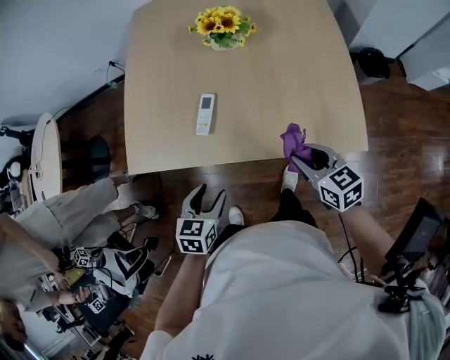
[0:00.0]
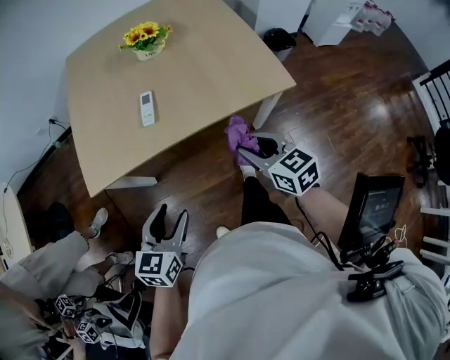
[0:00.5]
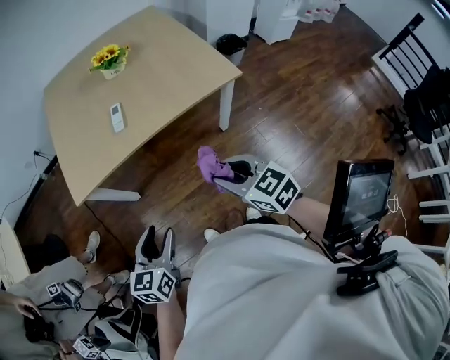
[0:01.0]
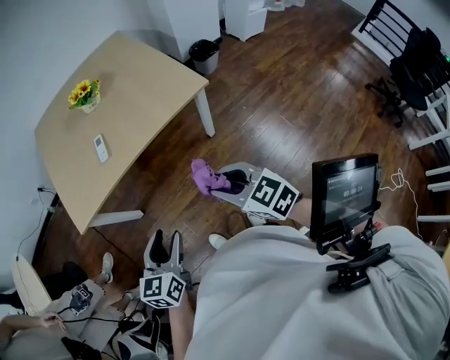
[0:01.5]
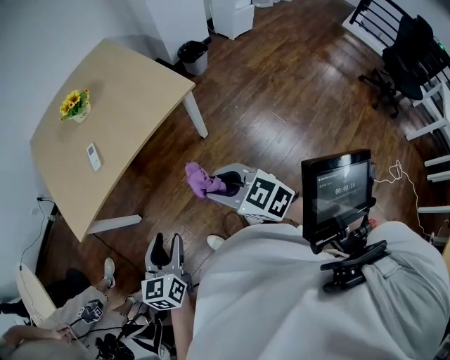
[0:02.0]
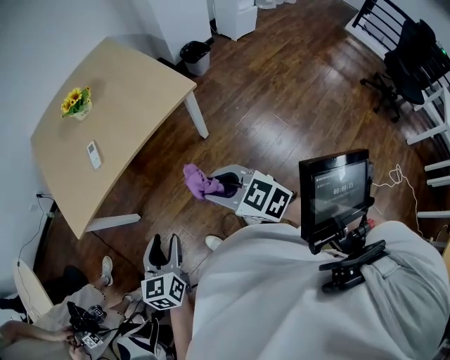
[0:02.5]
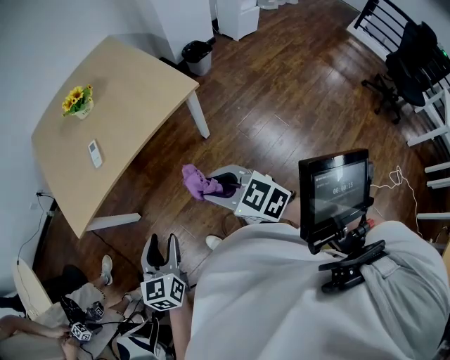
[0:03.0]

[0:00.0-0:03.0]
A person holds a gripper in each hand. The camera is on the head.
0:00.0 to 0:01.5: The right gripper moves backward, some 35 cm, while the left gripper is displaced backward and upward by some 30 cm, and changes its angle by some 30 degrees.
0:01.5 to 0:03.0: The grippers move only a little.

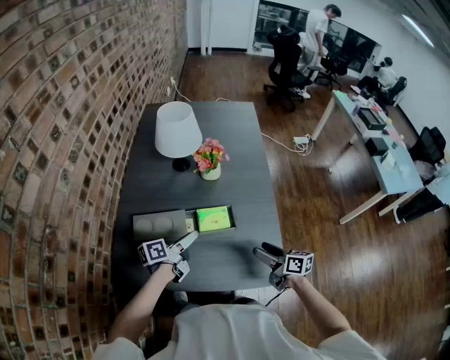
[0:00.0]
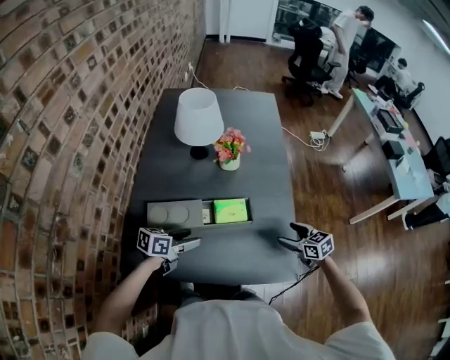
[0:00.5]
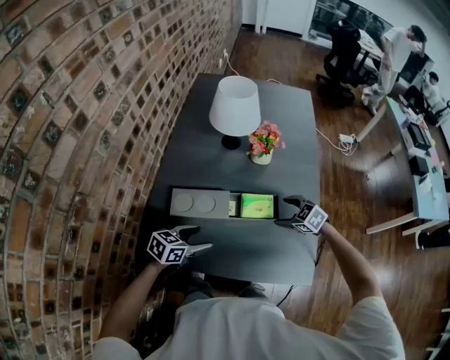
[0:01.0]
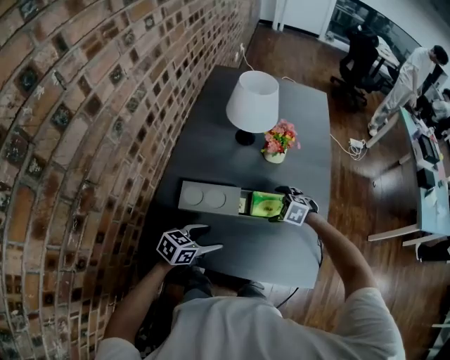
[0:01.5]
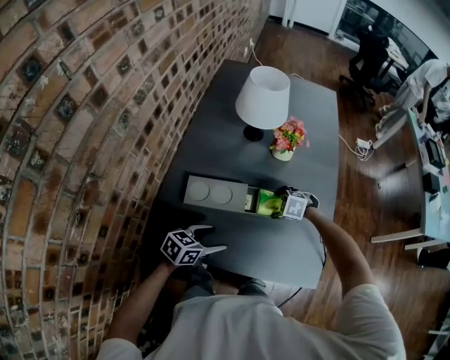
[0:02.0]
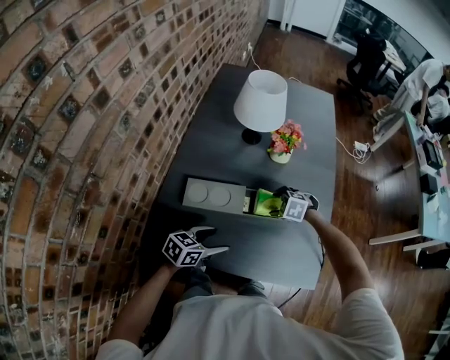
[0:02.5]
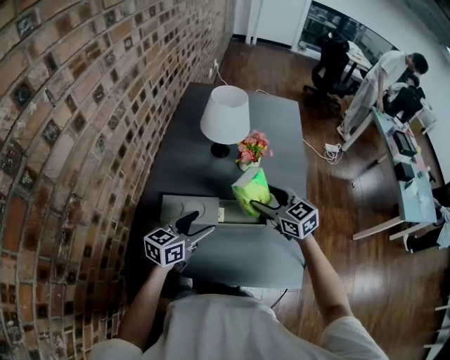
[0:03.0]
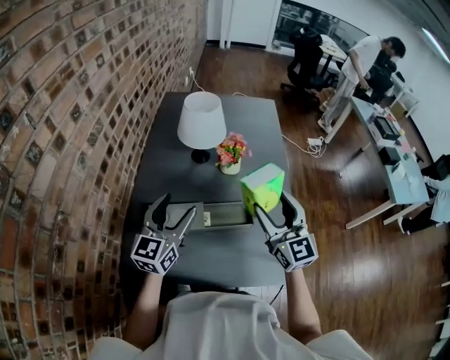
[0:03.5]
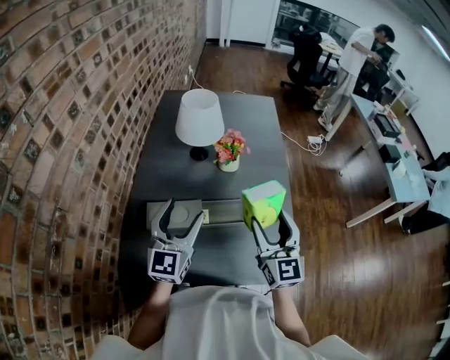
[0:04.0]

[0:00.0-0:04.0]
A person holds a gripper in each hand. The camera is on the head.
0:00.0 to 0:02.0: The right gripper shifts by about 25 cm, and tips its fingers downward by about 60 degrees, while the left gripper ends up roughly 10 cm from where it was, and rotates roughly 50 degrees.
0:02.0 to 0:04.0: Both grippers move upward, roughly 30 cm. The left gripper angles its fingers upward, by about 40 degrees. The right gripper tips its fingers upward by some 80 degrees.

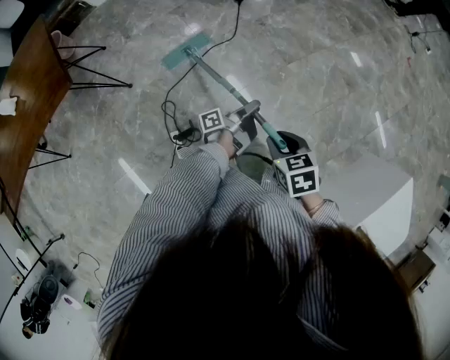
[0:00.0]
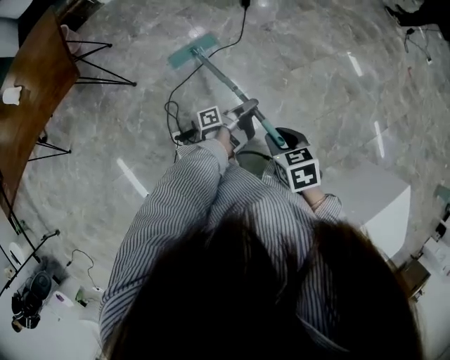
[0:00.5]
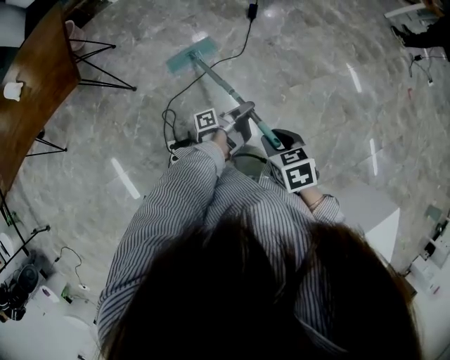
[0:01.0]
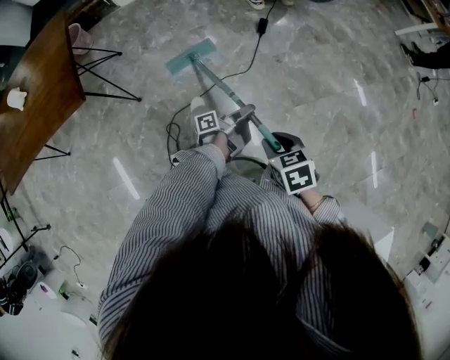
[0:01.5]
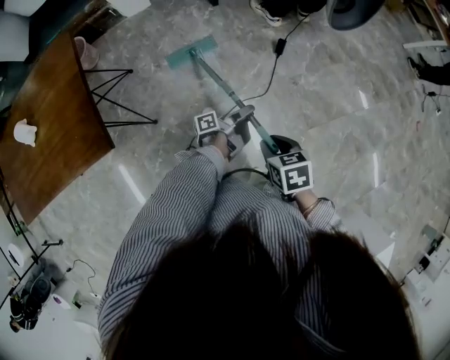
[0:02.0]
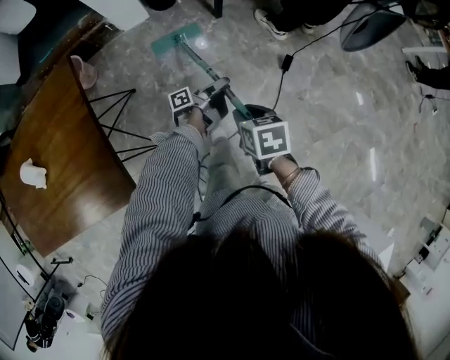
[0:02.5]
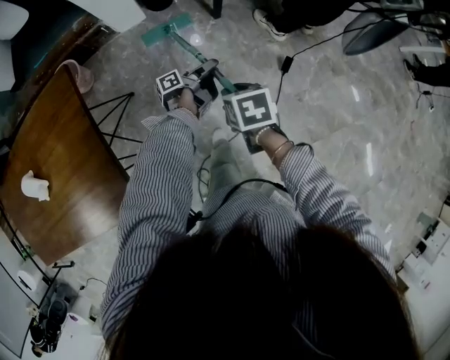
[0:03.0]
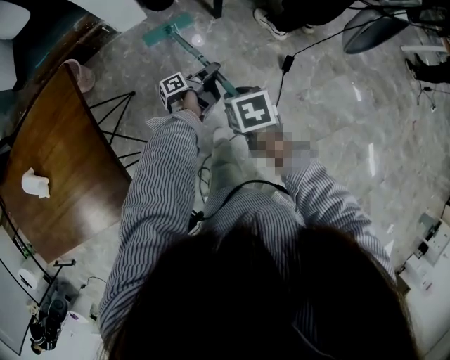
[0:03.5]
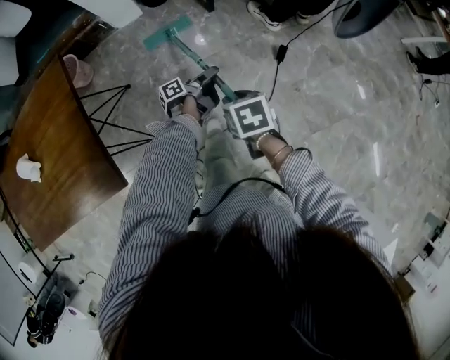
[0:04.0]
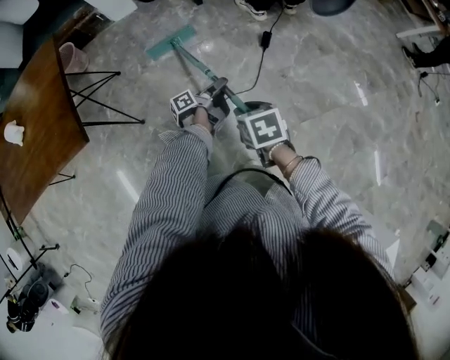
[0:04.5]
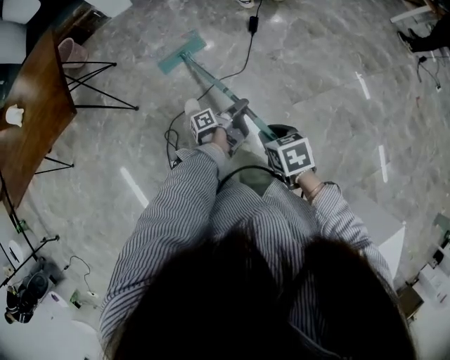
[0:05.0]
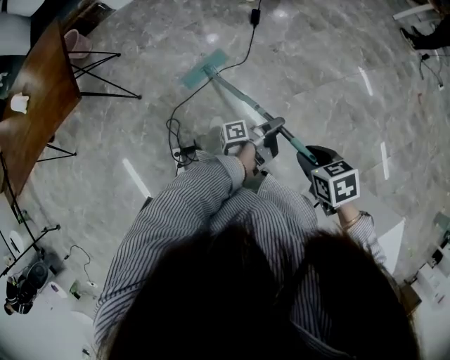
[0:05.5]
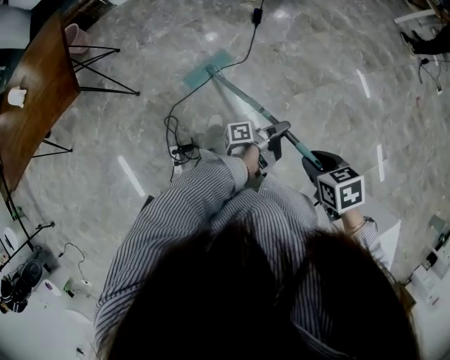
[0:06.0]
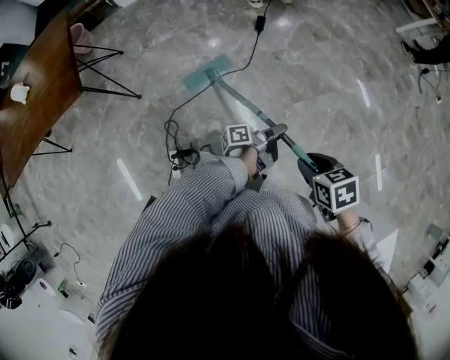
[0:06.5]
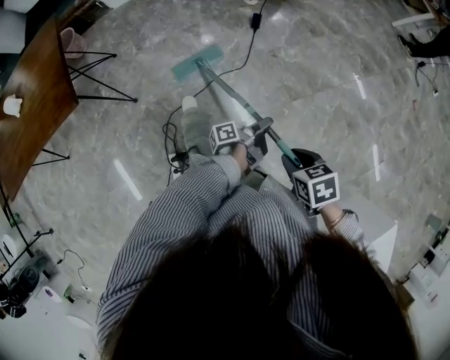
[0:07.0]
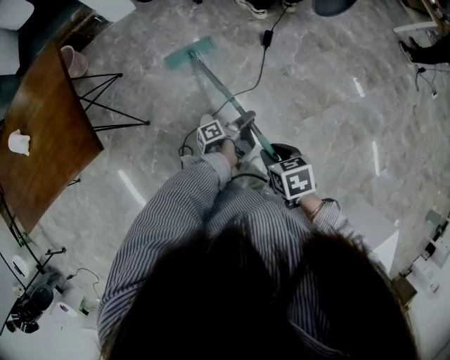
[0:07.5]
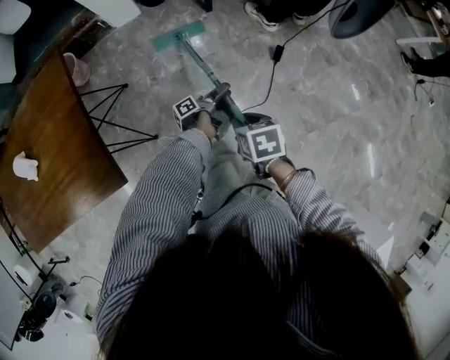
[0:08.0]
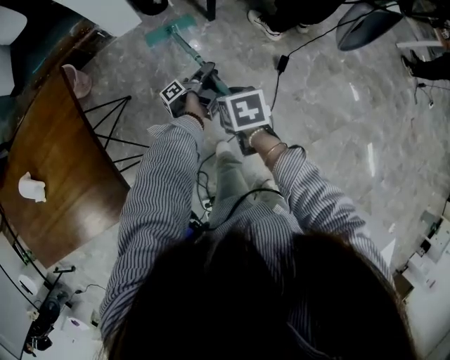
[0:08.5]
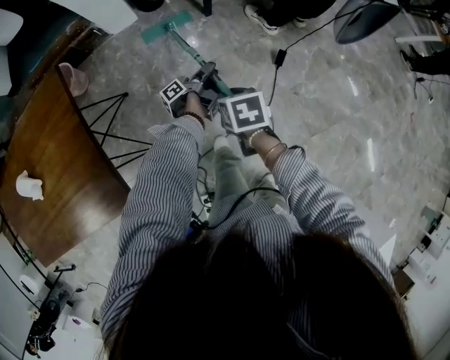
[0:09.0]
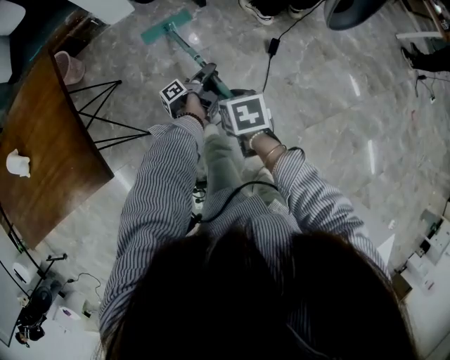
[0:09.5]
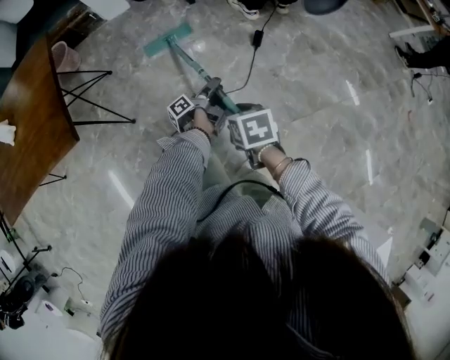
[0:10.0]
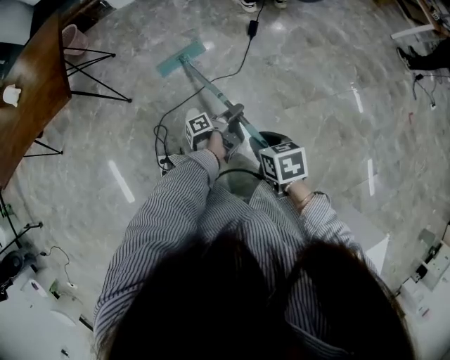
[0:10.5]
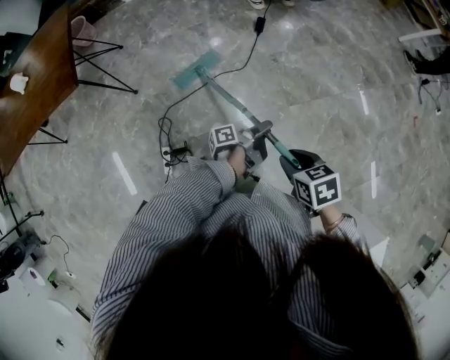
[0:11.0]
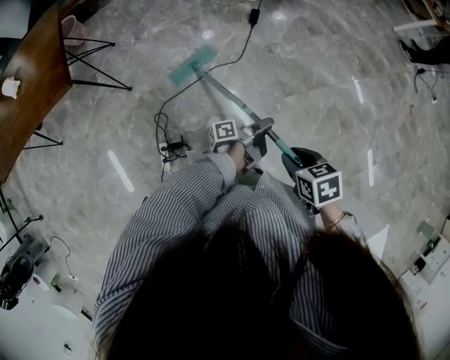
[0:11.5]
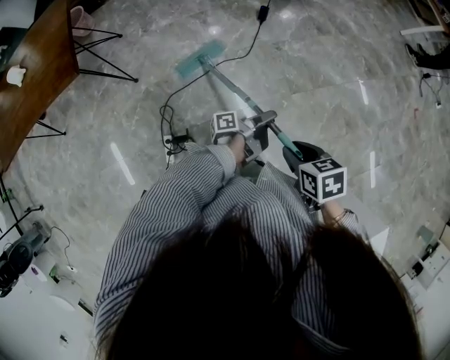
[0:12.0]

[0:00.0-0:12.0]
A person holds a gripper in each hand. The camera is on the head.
0:00.0 to 0:02.0: The right gripper changes place by some 40 cm.
0:02.0 to 0:04.0: The right gripper changes place by about 25 cm.
0:04.0 to 0:06.0: The right gripper shifts by some 60 cm.
0:06.0 to 0:08.0: The right gripper changes place by about 60 cm.
0:08.0 to 0:10.0: The right gripper changes place by approximately 20 cm.
0:10.0 to 0:12.0: The right gripper moves approximately 35 cm.

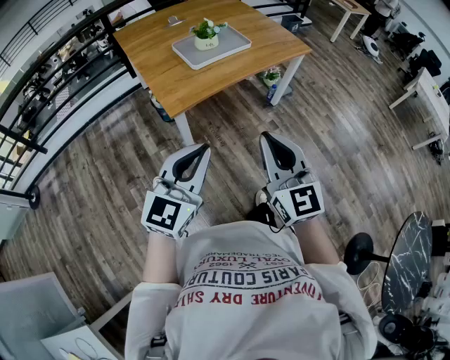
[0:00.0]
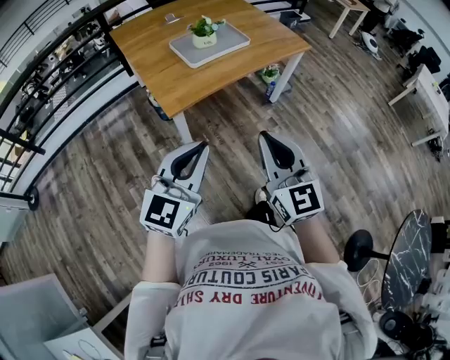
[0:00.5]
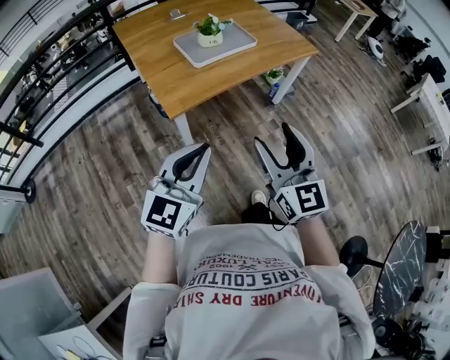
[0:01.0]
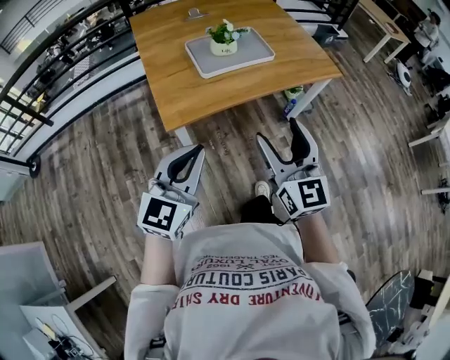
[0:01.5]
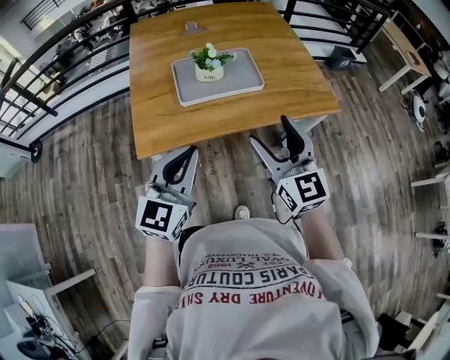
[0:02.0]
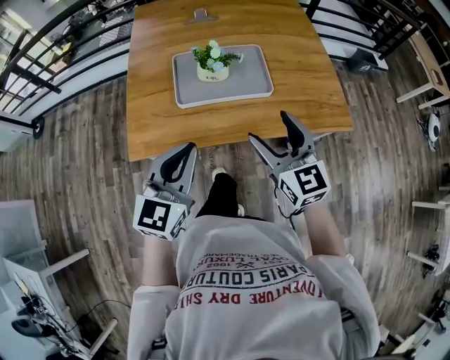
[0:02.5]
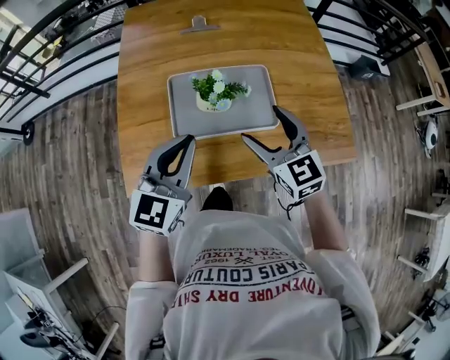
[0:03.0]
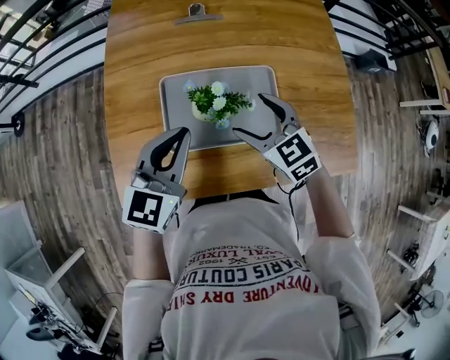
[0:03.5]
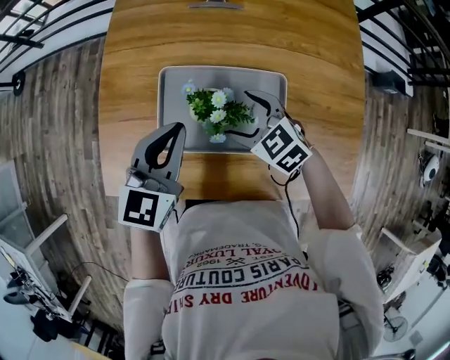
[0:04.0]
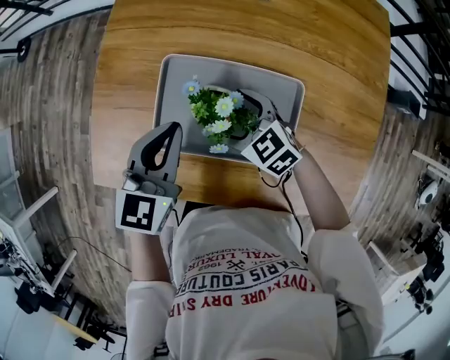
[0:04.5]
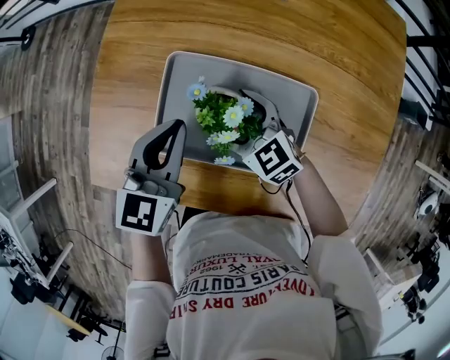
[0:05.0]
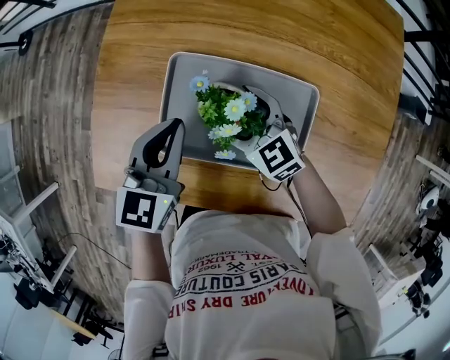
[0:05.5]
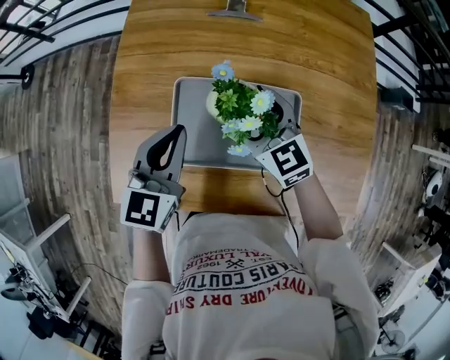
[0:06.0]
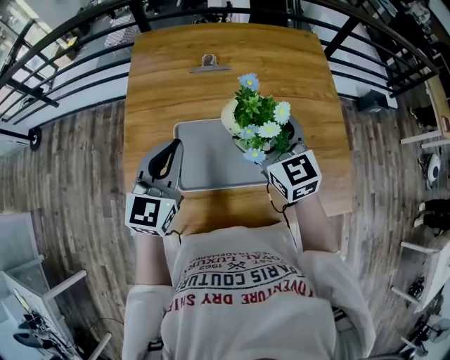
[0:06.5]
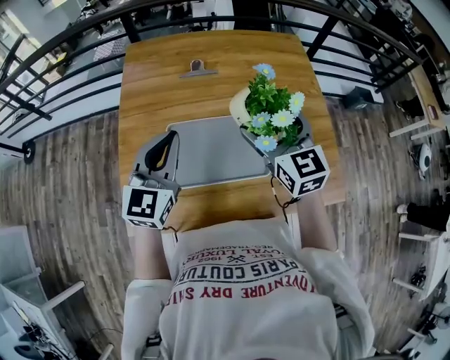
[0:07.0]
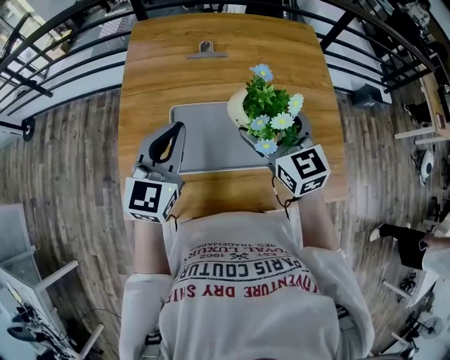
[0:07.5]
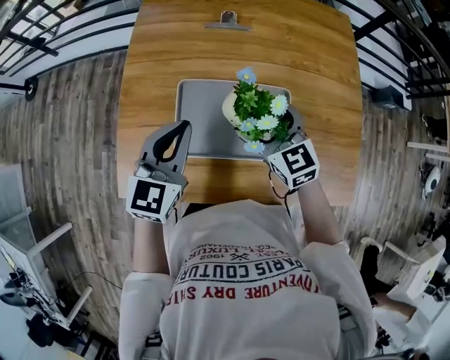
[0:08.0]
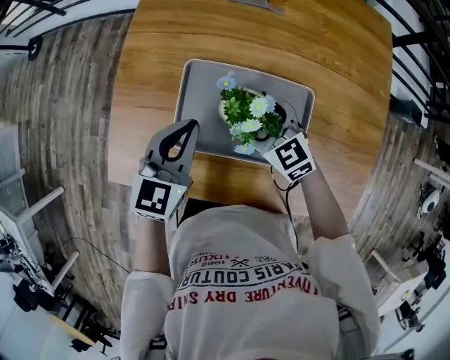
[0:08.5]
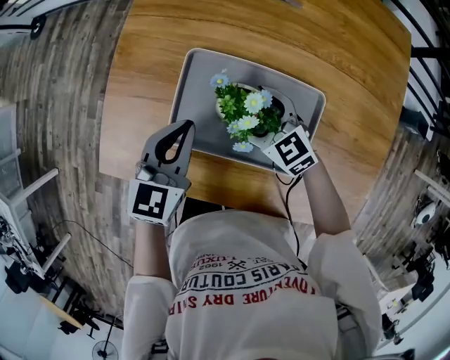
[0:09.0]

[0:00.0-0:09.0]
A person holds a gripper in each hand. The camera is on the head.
0:00.0 to 0:02.0: The right gripper moves forward, roughly 35 cm, changes its angle by roughly 20 degrees, and opens. Meanwhile the left gripper goes about 30 cm forward and to the right, and changes its angle by some 30 degrees.
0:02.0 to 0:04.5: The left gripper shifts by approximately 40 cm, and rotates approximately 30 degrees, while the right gripper moves some 50 cm, and tilts its fingers approximately 40 degrees downward.
0:04.5 to 0:07.0: The left gripper heads upward, covering some 15 cm, and turns by roughly 30 degrees. Meanwhile the right gripper is displaced upward by approximately 25 cm, and changes its angle by roughly 50 degrees.
0:07.0 to 0:09.0: The right gripper moves downward, about 25 cm, and changes its angle by about 50 degrees; the left gripper heads downward, covering about 20 cm, and changes its angle by approximately 30 degrees.
